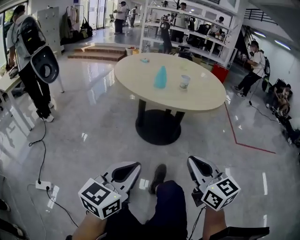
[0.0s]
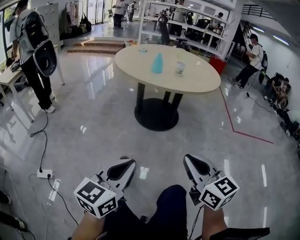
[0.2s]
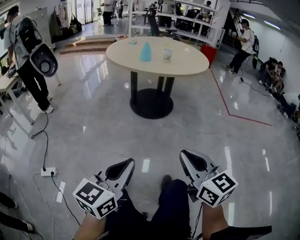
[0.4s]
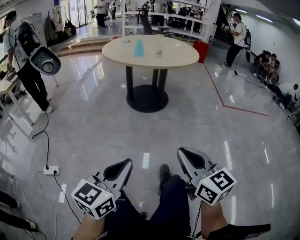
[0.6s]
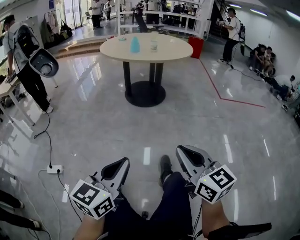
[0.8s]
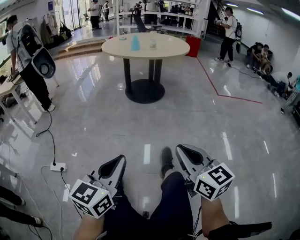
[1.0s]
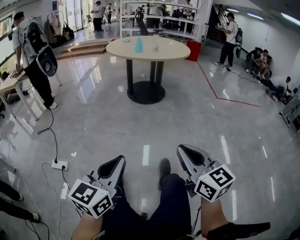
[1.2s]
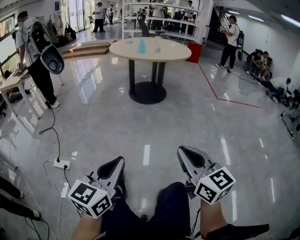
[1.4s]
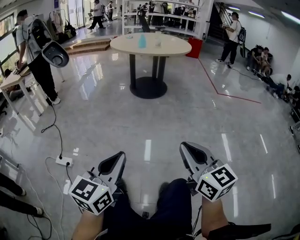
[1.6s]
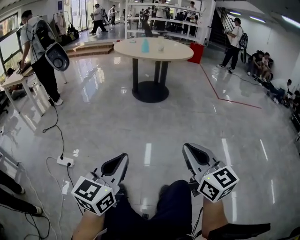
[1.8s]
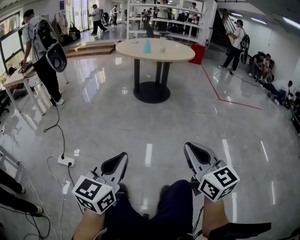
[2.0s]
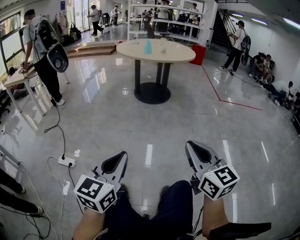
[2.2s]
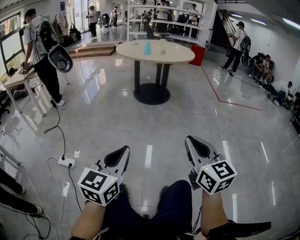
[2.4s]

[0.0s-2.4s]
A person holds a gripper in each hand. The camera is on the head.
0.0s to 1.2s: The two grippers travel together, backward, approximately 50 cm.
1.2s to 2.4s: The right gripper ends up approximately 5 cm from where it was.

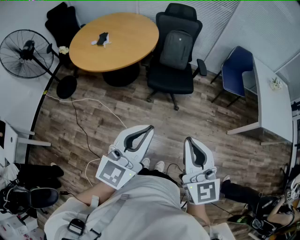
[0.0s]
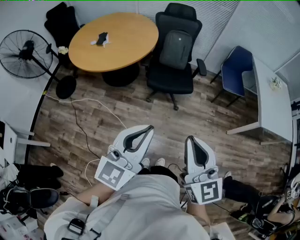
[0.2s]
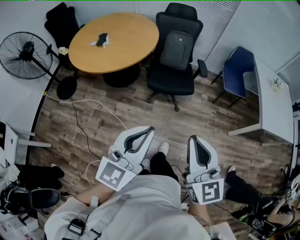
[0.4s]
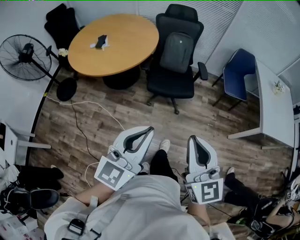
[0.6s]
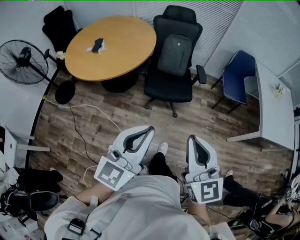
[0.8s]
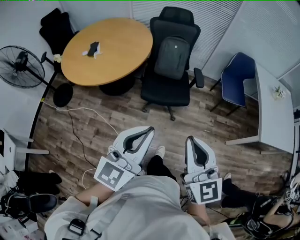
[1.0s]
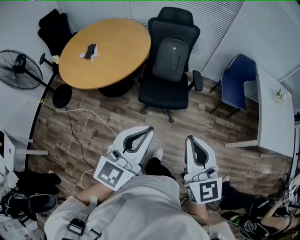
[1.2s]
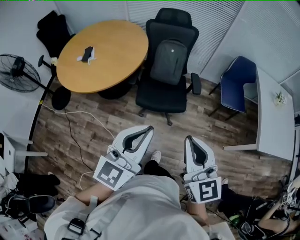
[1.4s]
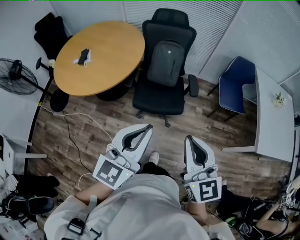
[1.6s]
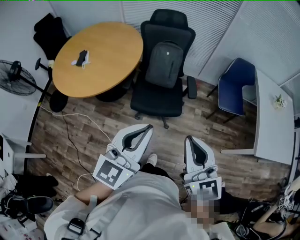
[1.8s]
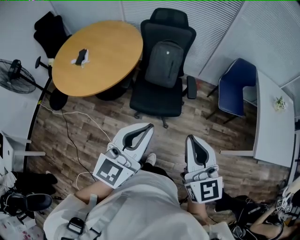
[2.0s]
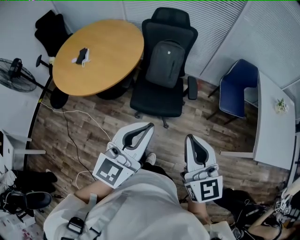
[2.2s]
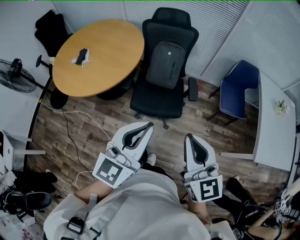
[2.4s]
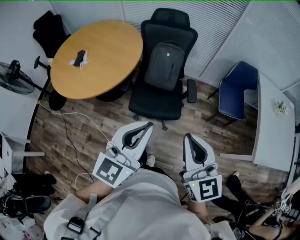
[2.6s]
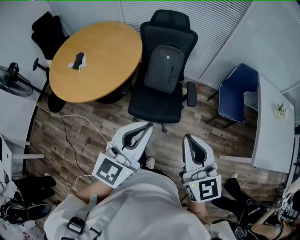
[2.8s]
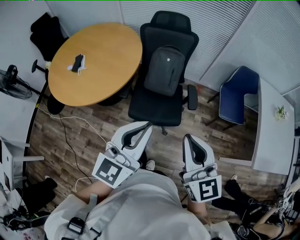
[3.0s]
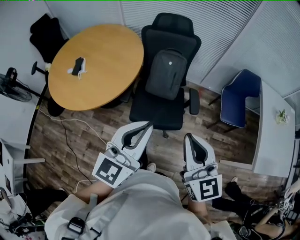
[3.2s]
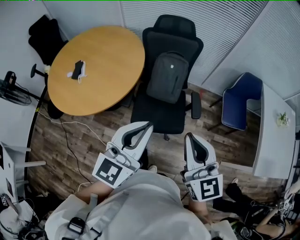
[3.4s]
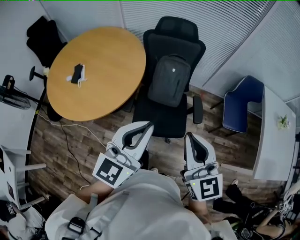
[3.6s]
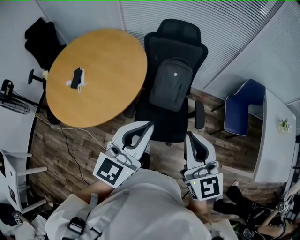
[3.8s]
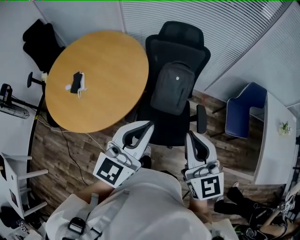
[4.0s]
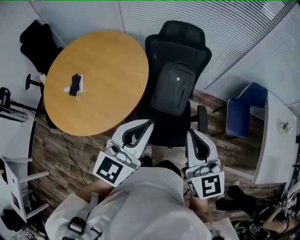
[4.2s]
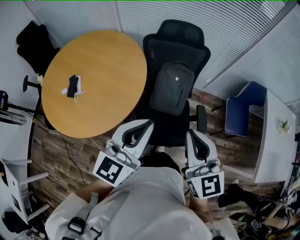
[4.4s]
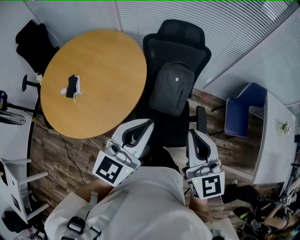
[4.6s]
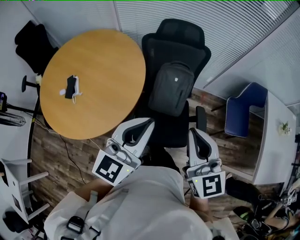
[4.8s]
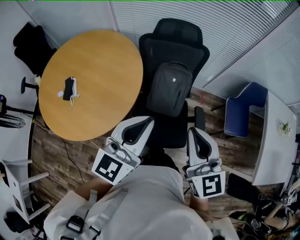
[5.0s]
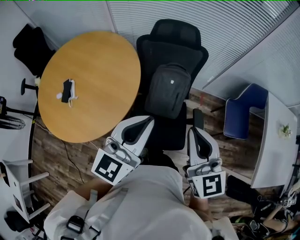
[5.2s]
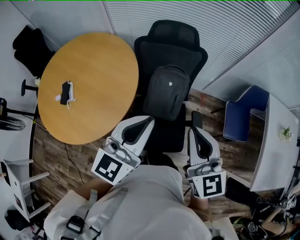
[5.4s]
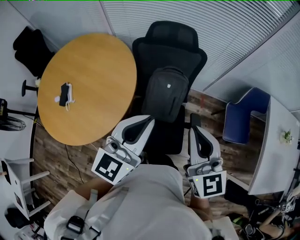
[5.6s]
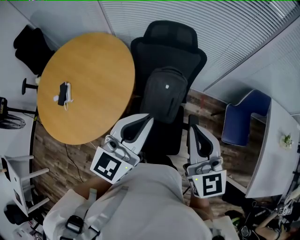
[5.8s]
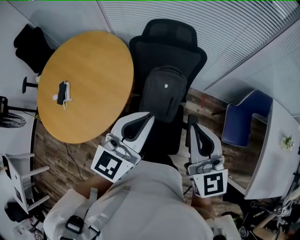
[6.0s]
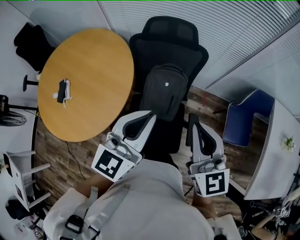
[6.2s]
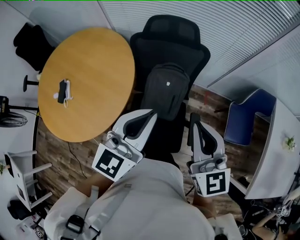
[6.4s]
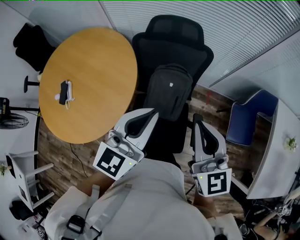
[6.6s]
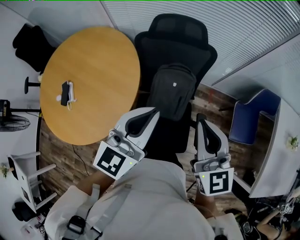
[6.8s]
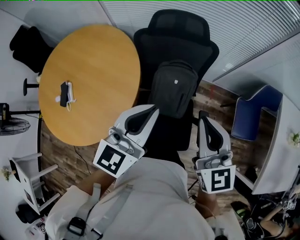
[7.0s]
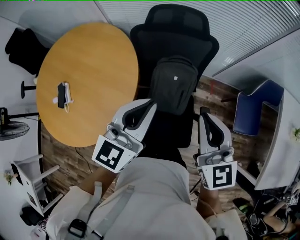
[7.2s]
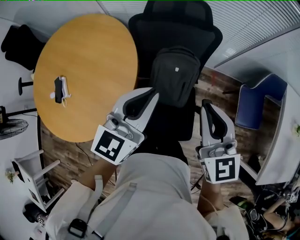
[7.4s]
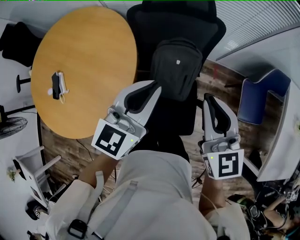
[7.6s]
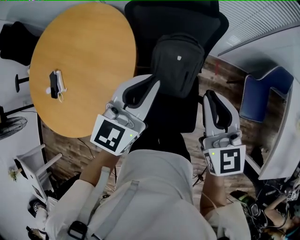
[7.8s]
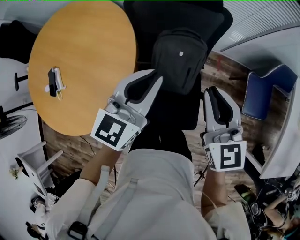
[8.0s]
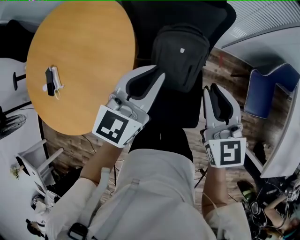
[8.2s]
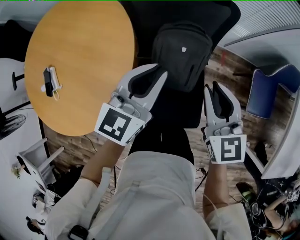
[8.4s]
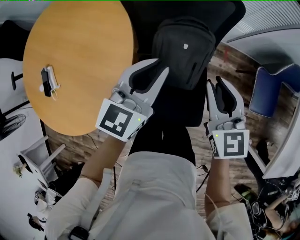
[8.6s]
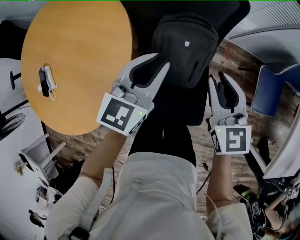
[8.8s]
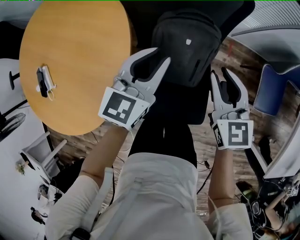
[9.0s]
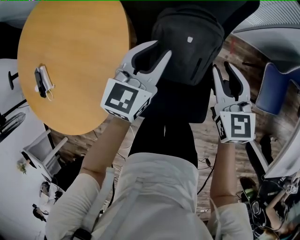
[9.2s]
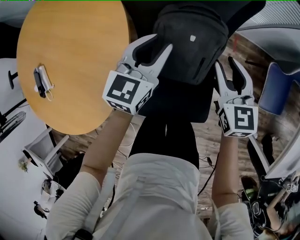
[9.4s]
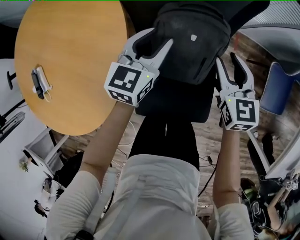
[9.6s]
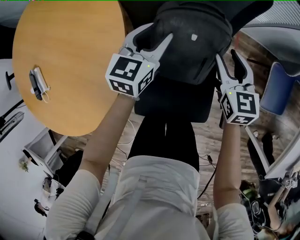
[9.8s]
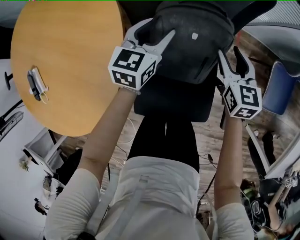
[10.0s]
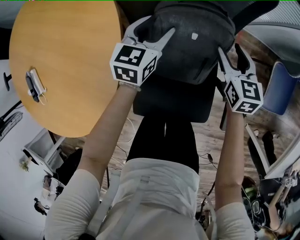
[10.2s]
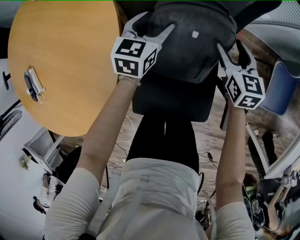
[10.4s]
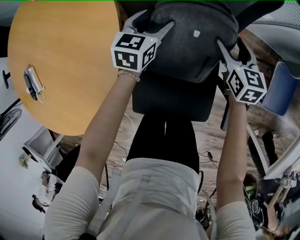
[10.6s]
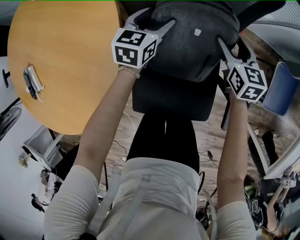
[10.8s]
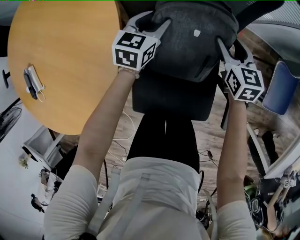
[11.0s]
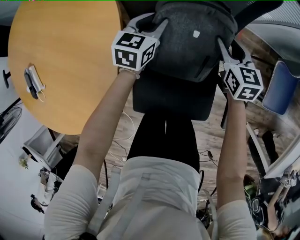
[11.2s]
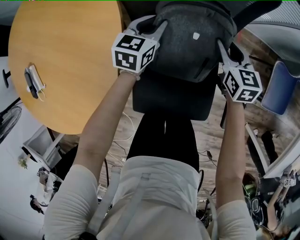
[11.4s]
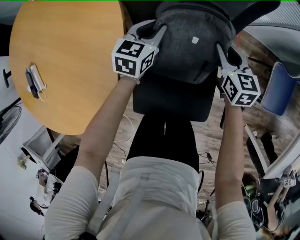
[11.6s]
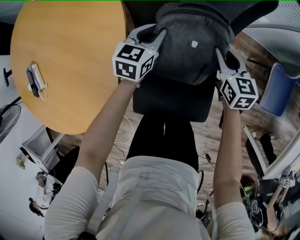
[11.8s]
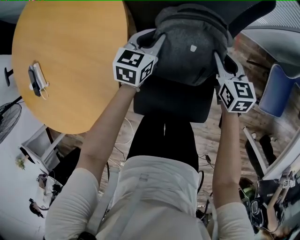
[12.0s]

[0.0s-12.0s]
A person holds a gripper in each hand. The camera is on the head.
0.0s to 1.6s: The grippers both shift forward and to the right by roughly 30 cm.
1.6s to 3.0s: Both grippers move forward, roughly 15 cm.
3.0s to 4.4s: The grippers both shift forward and to the left by roughly 25 cm.
4.4s to 6.0s: The two grippers go roughly 20 cm forward and to the right.
6.0s to 7.6s: The left gripper moves downward, forward and to the left, about 15 cm. The right gripper heads downward and forward, covering about 10 cm.
7.6s to 9.0s: The two grippers go about 20 cm downward and forward.
9.0s to 10.4s: The grippers both shift downward and forward by approximately 20 cm. The left gripper opens up; the right gripper opens.
10.4s to 12.0s: The right gripper closes its fingers, while the left gripper closes up.

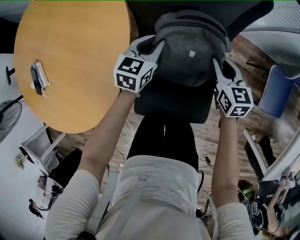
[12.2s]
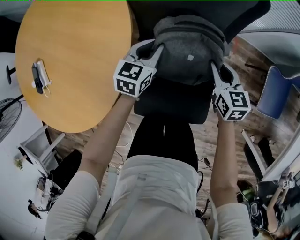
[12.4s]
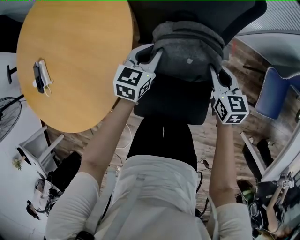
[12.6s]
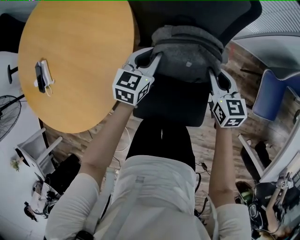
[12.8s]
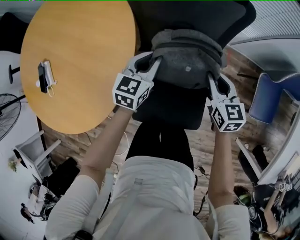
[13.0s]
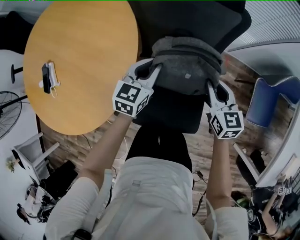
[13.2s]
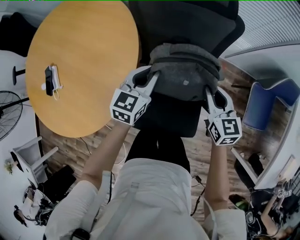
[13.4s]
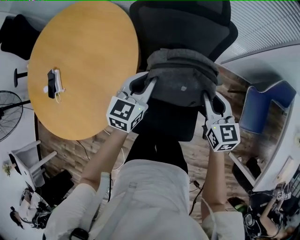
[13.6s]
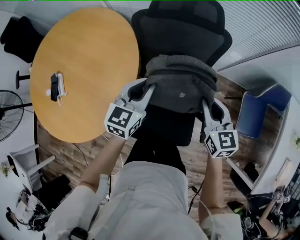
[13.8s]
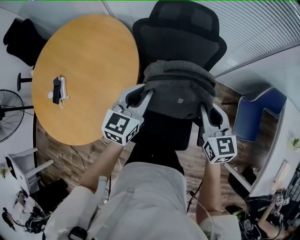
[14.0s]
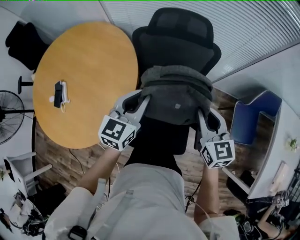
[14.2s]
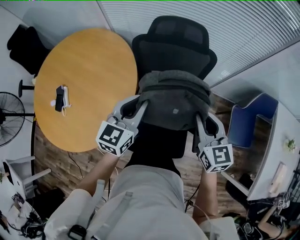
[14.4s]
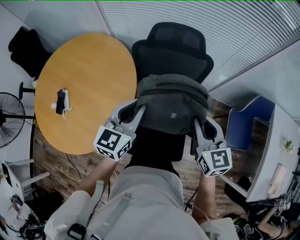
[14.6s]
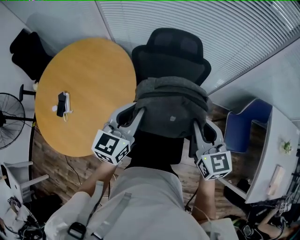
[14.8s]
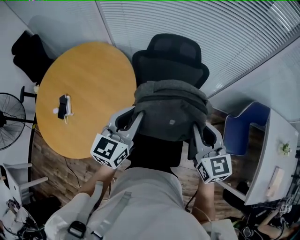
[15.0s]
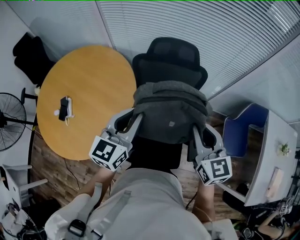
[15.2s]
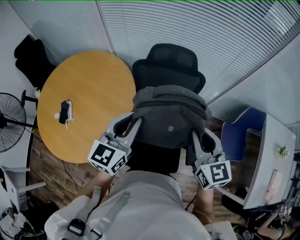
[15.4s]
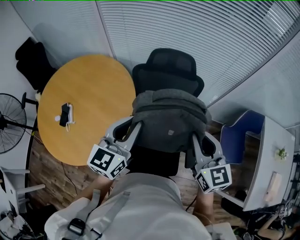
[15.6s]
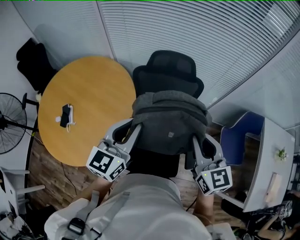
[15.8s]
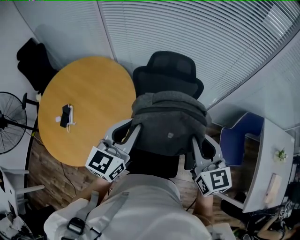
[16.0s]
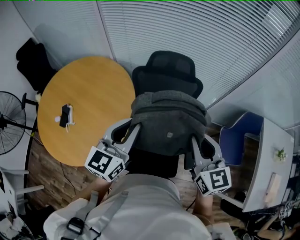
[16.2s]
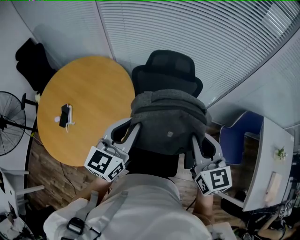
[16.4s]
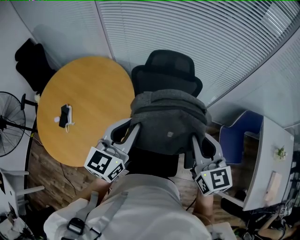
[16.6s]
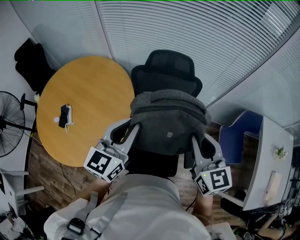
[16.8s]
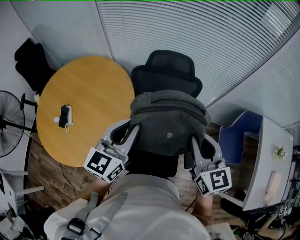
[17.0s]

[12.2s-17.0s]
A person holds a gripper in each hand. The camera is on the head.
12.2s to 13.8s: Both grippers move upward, about 25 cm.
13.8s to 15.4s: Both grippers move upward, roughly 20 cm.
15.4s to 17.0s: There are only small adjustments of the grippers.

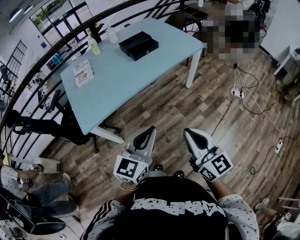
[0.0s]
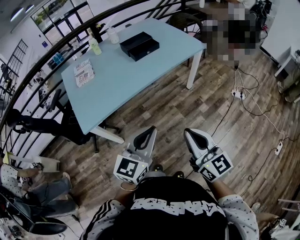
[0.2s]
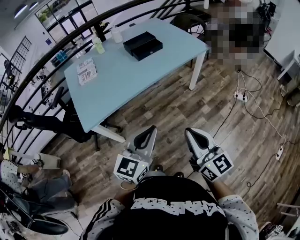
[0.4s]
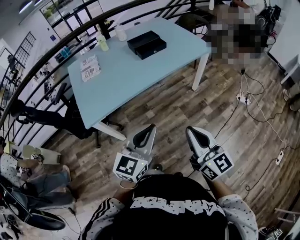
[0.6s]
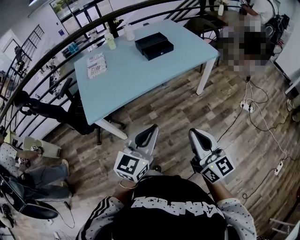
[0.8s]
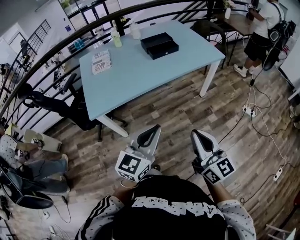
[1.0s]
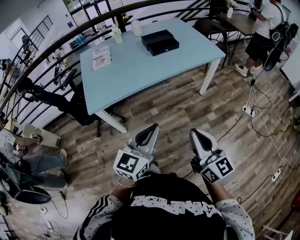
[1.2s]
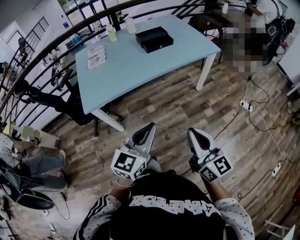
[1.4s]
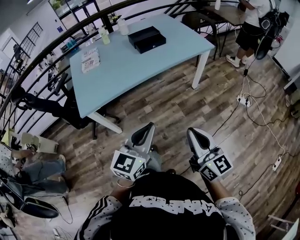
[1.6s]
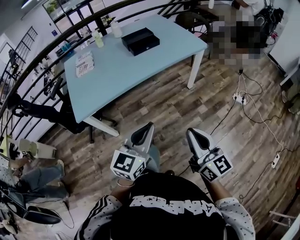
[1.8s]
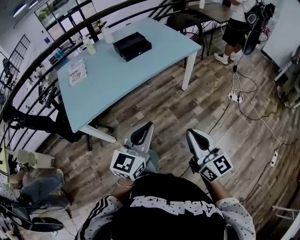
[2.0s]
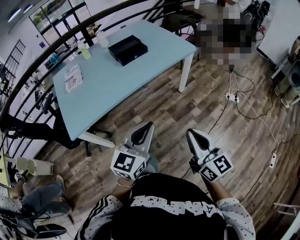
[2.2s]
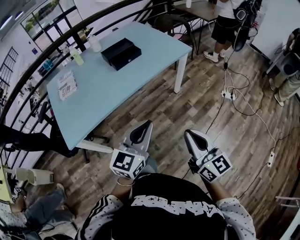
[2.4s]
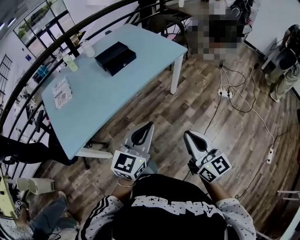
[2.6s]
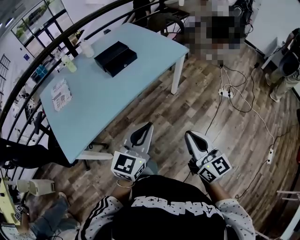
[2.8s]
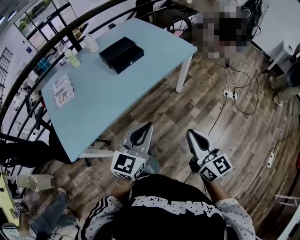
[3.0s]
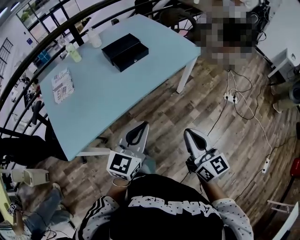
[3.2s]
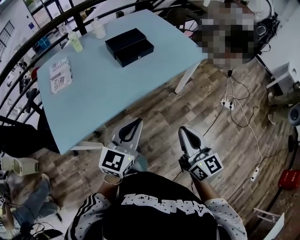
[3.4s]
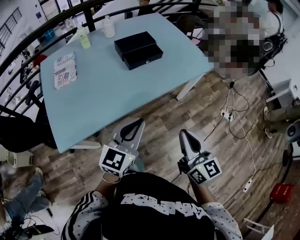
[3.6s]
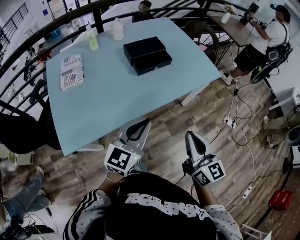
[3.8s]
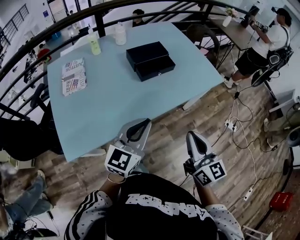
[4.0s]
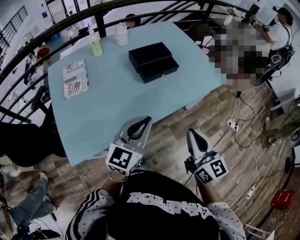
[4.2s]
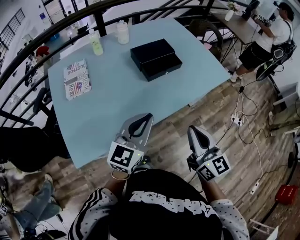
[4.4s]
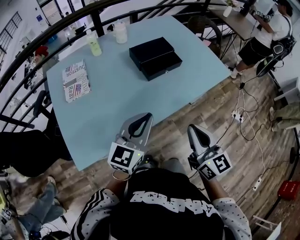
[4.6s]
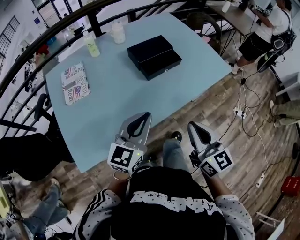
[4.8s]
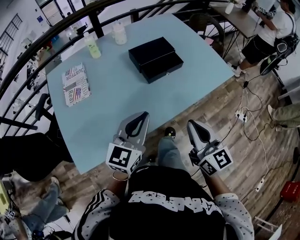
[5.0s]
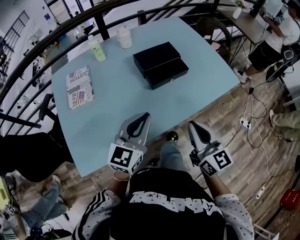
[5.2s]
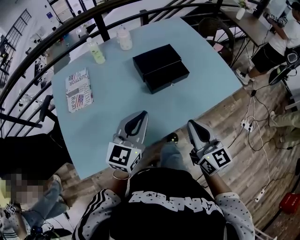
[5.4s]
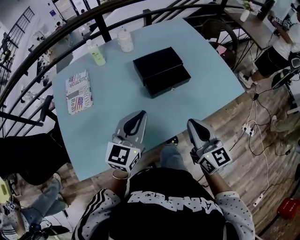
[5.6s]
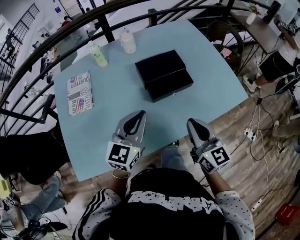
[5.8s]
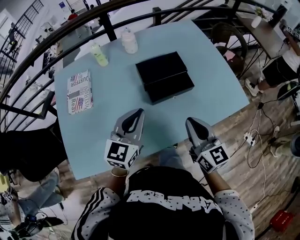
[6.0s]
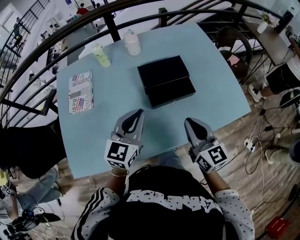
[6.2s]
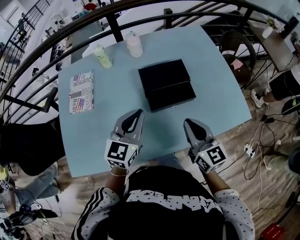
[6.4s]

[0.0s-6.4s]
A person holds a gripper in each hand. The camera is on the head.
0.0s to 1.6s: Both grippers travel together to the right, about 5 cm.
1.6s to 3.2s: Both grippers travel together forward, some 20 cm.
3.2s to 4.8s: The two grippers go roughly 25 cm forward and to the left.
4.8s to 6.4s: Both grippers move forward, some 25 cm. The left gripper swivels approximately 20 degrees.
